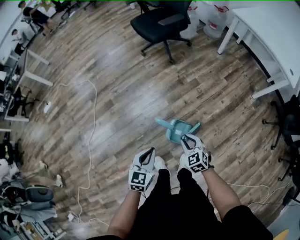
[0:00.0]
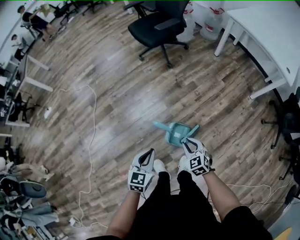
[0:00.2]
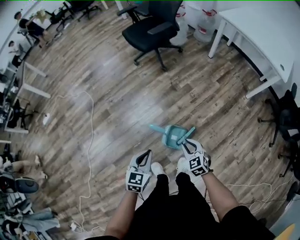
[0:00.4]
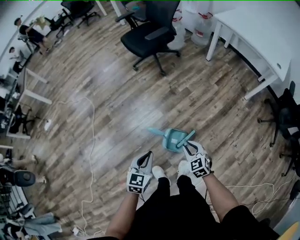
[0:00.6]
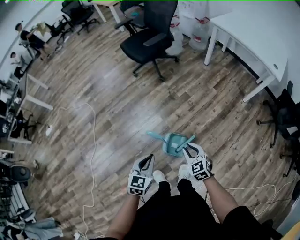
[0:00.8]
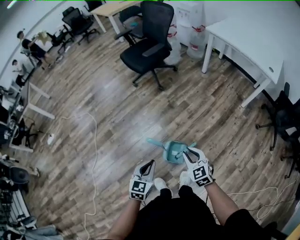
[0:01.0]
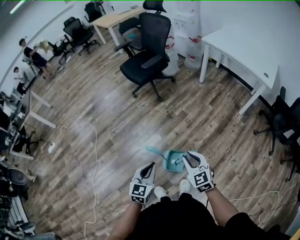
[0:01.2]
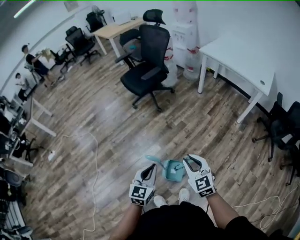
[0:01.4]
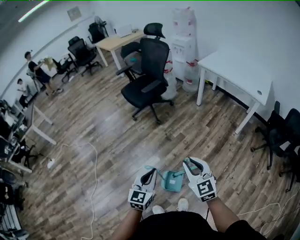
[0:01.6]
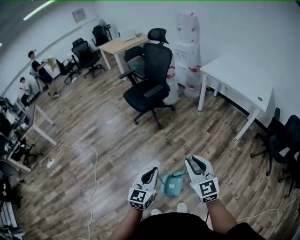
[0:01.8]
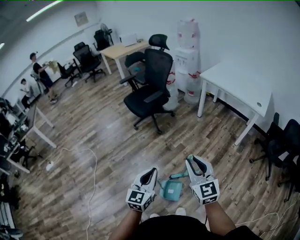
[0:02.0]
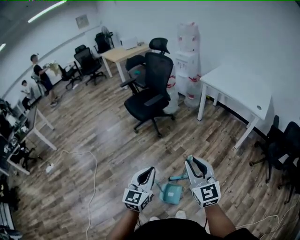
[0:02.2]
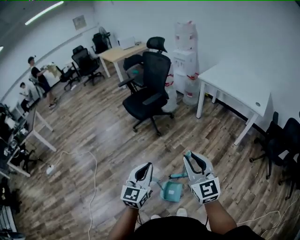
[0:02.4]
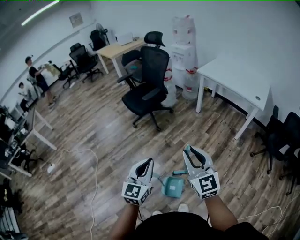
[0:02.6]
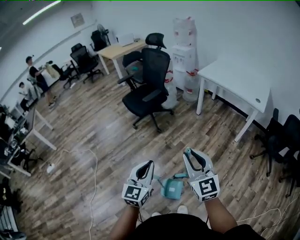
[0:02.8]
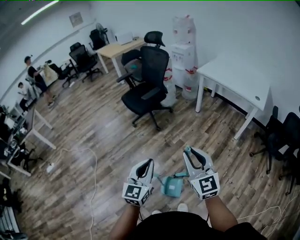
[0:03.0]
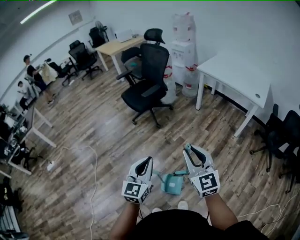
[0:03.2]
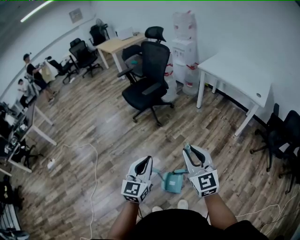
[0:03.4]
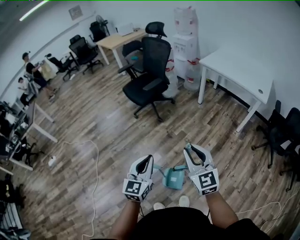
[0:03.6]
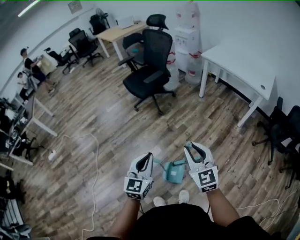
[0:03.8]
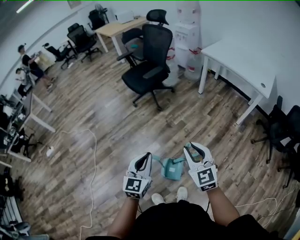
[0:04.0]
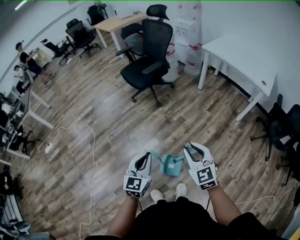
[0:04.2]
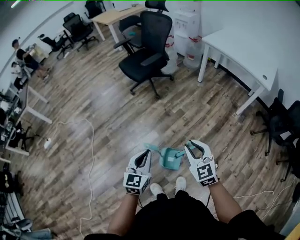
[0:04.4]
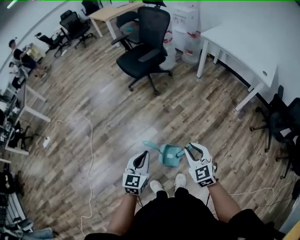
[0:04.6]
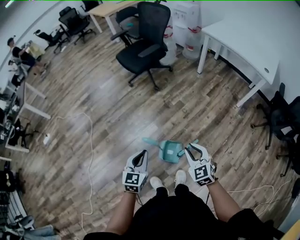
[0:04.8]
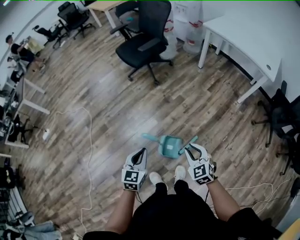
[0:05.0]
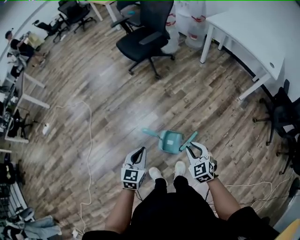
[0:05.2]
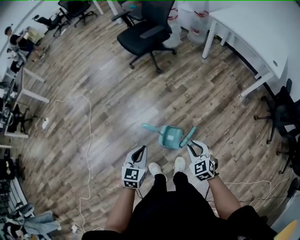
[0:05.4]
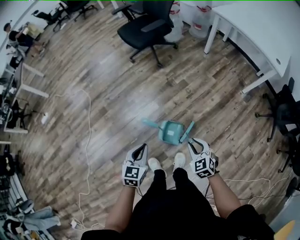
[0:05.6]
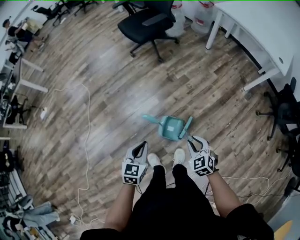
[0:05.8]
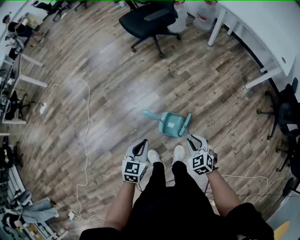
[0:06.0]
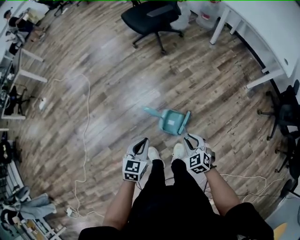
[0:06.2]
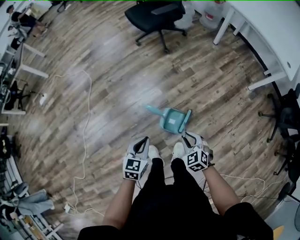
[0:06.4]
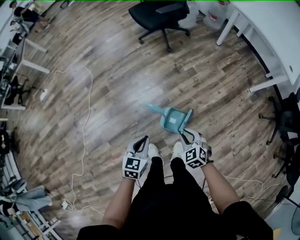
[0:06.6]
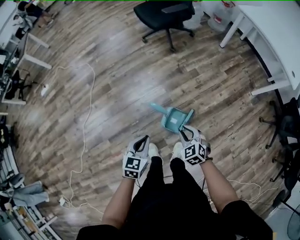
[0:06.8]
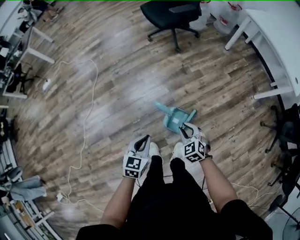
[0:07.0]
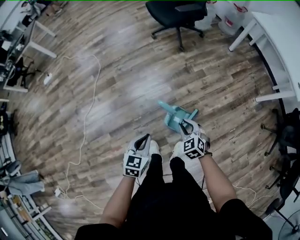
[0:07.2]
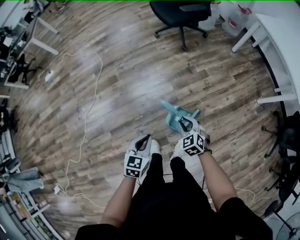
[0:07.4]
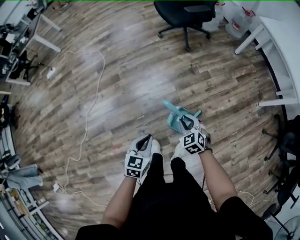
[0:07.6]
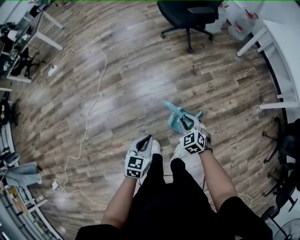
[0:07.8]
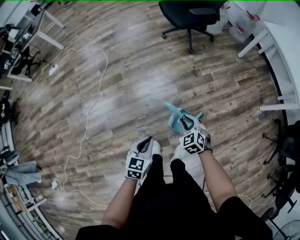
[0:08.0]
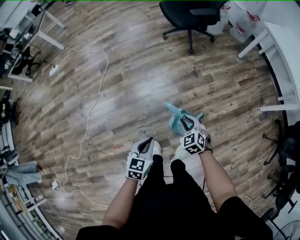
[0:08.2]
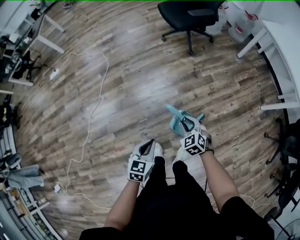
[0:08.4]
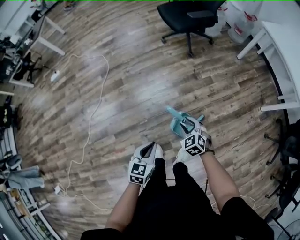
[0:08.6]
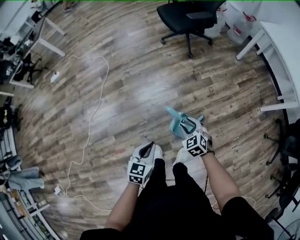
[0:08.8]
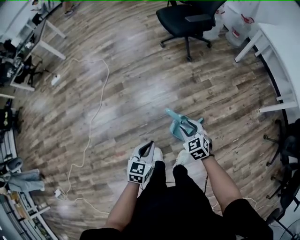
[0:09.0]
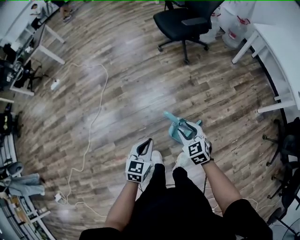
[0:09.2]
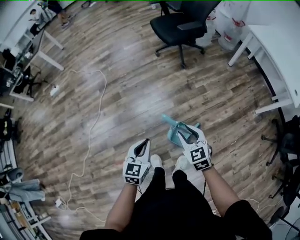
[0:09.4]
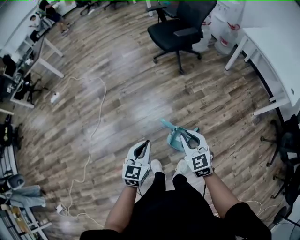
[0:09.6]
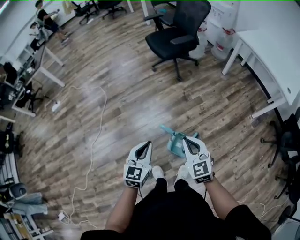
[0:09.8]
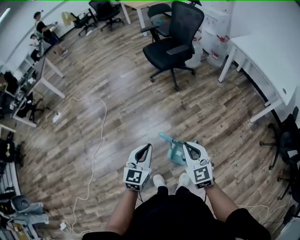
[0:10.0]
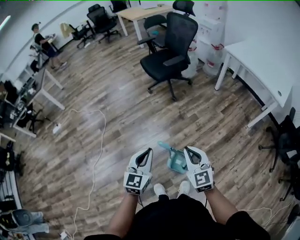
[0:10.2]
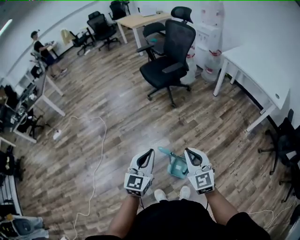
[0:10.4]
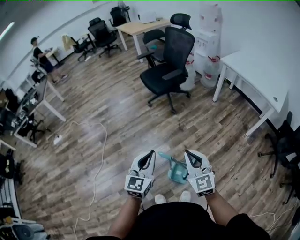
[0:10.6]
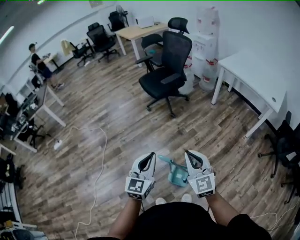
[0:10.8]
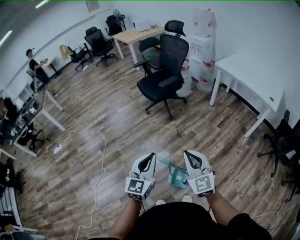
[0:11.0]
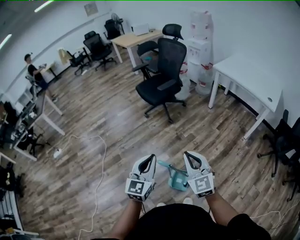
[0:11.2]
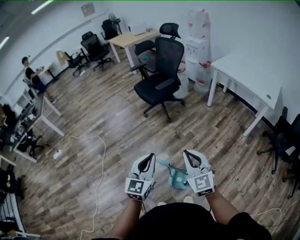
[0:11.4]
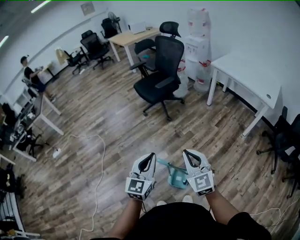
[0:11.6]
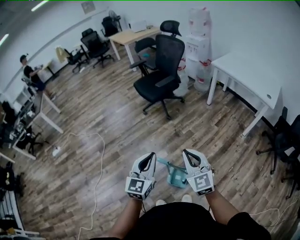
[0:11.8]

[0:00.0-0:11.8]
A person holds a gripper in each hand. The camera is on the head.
0:00.0 to 0:01.4: The right gripper heads upward, covering approximately 20 cm, and turns by some 30 degrees. The left gripper goes about 15 cm upward, to the right and forward.
0:01.4 to 0:03.0: Both grippers travel together upward, roughly 15 cm.
0:03.0 to 0:04.4: The grippers both shift downward by some 15 cm. The right gripper changes its angle by about 20 degrees.
0:04.4 to 0:06.0: The right gripper travels downward by approximately 20 cm, and rotates some 20 degrees. The left gripper moves downward and backward, some 15 cm.
0:06.0 to 0:07.4: The right gripper is displaced to the left and forward by approximately 15 cm. Meanwhile the left gripper changes place by some 5 cm.
0:07.4 to 0:08.8: There are only small adjustments of the grippers.
0:08.8 to 0:10.4: The left gripper moves upward and forward, some 20 cm, and swivels roughly 30 degrees. The right gripper goes roughly 25 cm upward, points its fingers some 30 degrees further upward, and closes.
0:10.4 to 0:11.8: The grippers make only small movements.

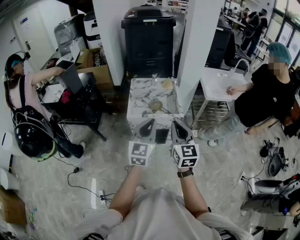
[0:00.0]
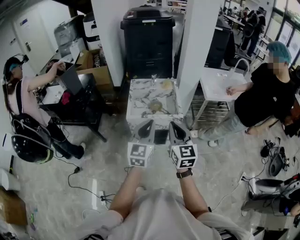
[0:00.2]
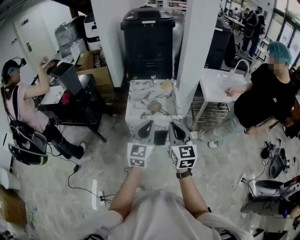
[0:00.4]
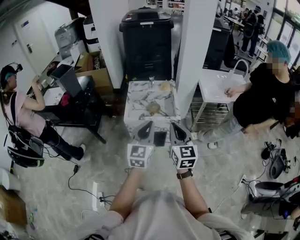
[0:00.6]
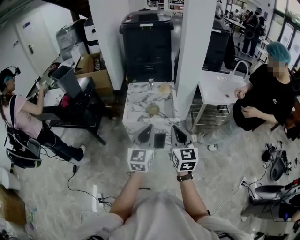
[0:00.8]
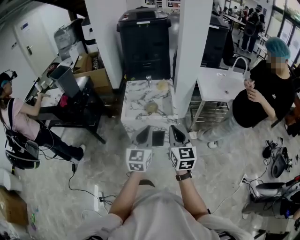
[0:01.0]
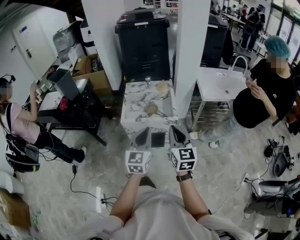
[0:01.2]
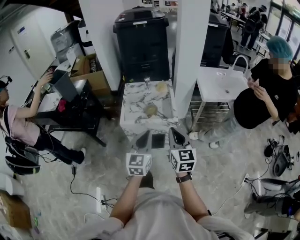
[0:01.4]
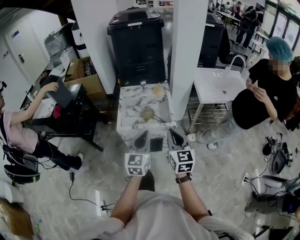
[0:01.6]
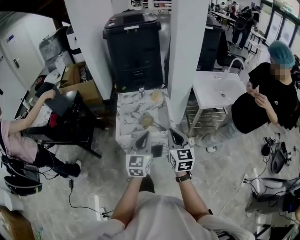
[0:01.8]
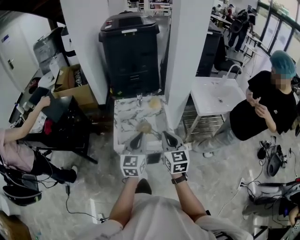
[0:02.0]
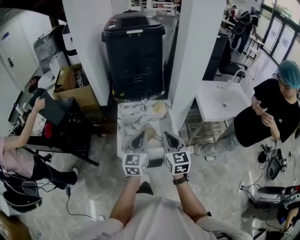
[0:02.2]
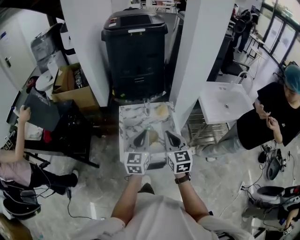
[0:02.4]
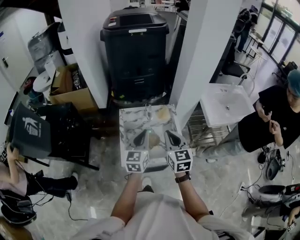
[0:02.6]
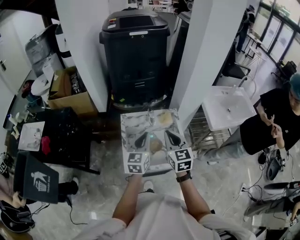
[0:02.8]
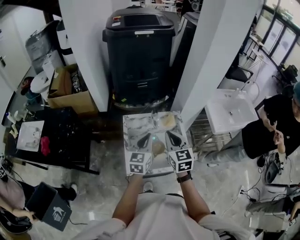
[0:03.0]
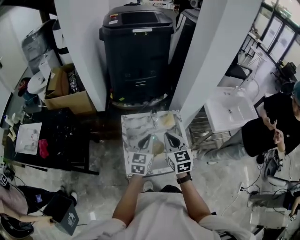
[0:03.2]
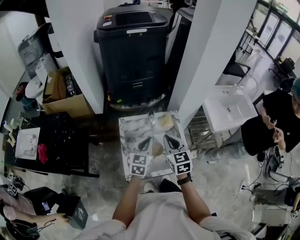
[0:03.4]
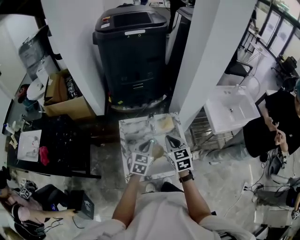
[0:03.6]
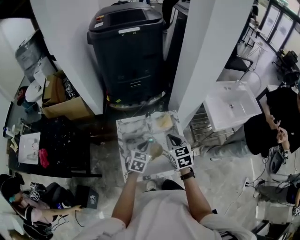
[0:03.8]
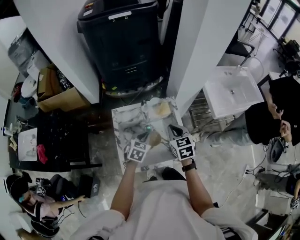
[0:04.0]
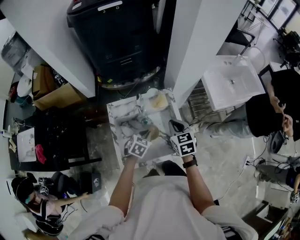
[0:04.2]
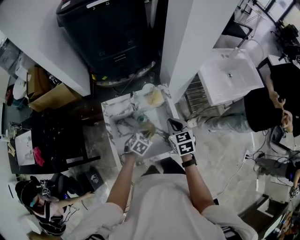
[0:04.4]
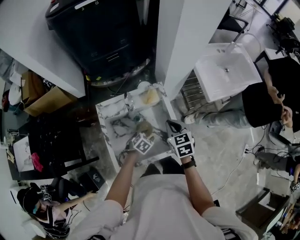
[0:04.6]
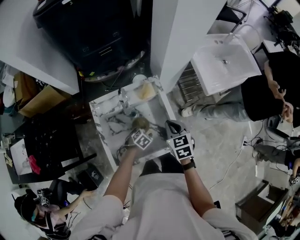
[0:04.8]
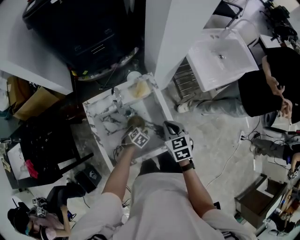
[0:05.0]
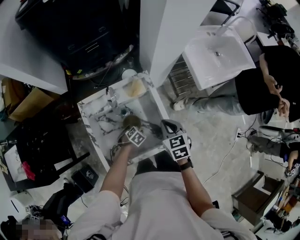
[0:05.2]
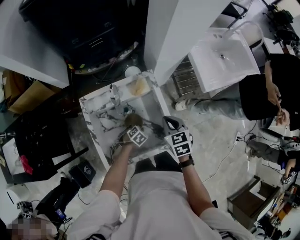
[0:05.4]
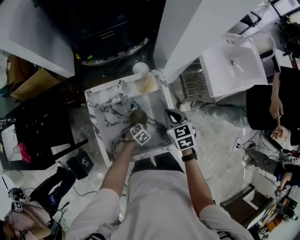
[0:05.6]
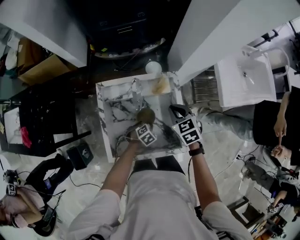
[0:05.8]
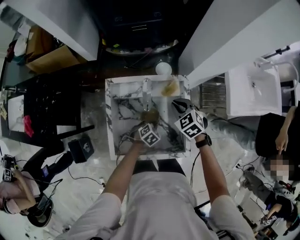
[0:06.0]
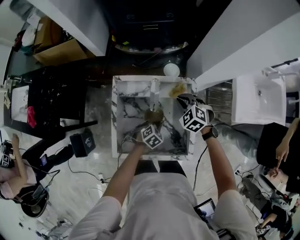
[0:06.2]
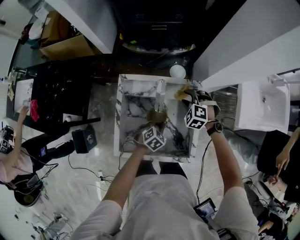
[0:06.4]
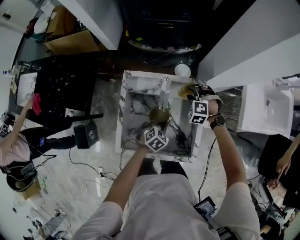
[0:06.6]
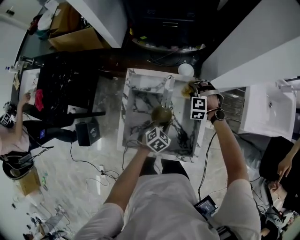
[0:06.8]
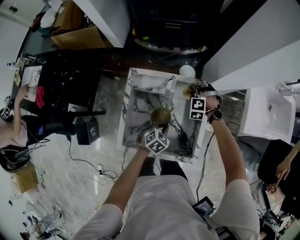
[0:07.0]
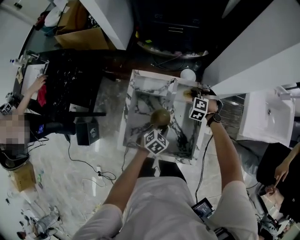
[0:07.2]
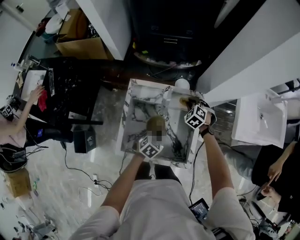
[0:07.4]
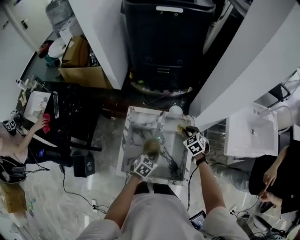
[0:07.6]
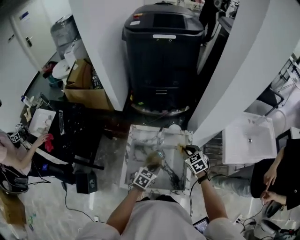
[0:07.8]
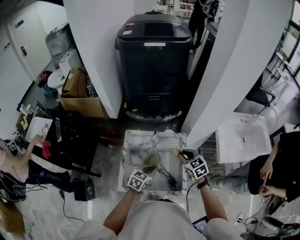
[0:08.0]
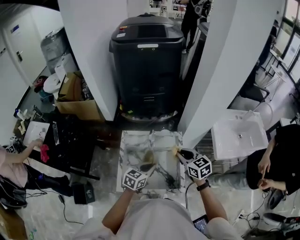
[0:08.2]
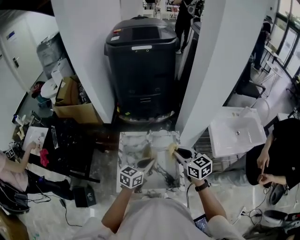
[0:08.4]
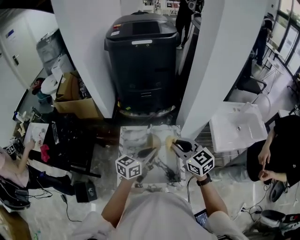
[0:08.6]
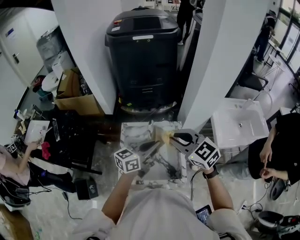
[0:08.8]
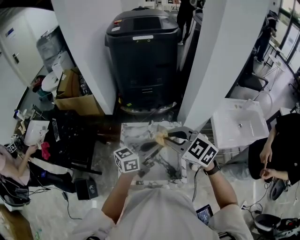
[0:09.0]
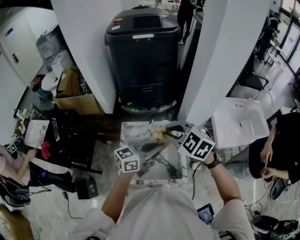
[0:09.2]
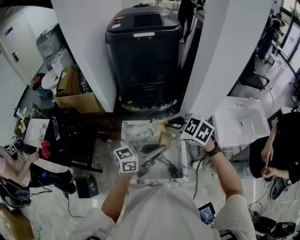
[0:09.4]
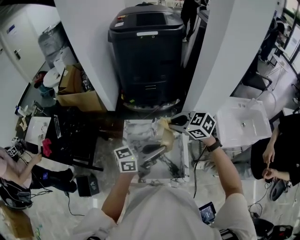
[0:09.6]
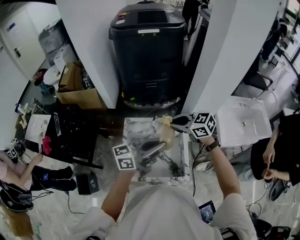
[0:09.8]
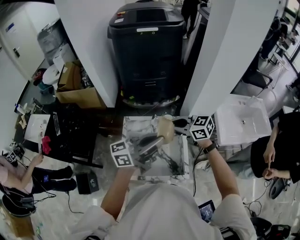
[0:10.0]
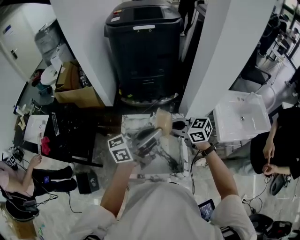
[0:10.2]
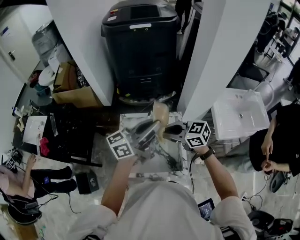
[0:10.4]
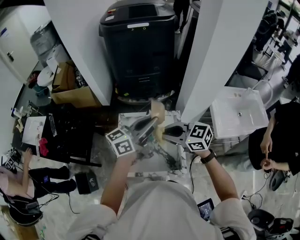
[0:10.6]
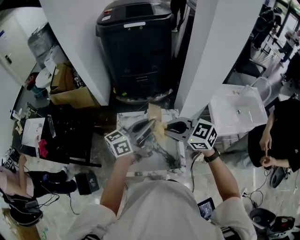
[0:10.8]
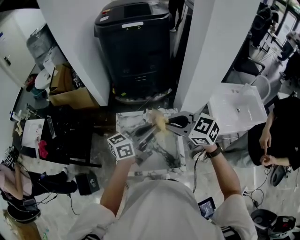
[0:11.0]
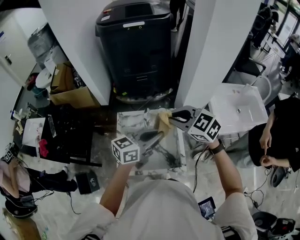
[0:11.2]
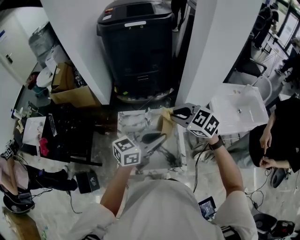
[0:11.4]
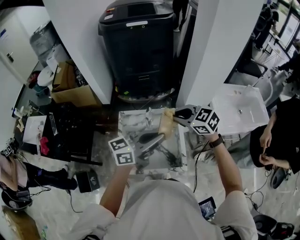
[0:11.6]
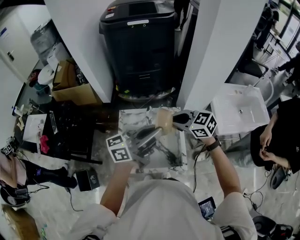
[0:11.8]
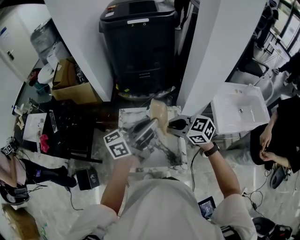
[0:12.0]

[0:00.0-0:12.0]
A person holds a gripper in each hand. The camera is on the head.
0:00.0 to 0:01.6: The left gripper heads forward and downward, covering roughly 10 cm. The right gripper travels forward and to the right by approximately 10 cm.
0:01.6 to 0:03.0: The left gripper heads forward, covering about 30 cm. Meanwhile the right gripper heads forward and to the left, covering approximately 35 cm.
0:03.0 to 0:04.4: The left gripper travels downward by some 25 cm, and points its fingers about 40 degrees further downward, while the right gripper goes roughly 20 cm downward, to the right and forward, and rotates approximately 20 degrees.
0:04.4 to 0:06.0: The right gripper goes about 15 cm downward, forward and to the left, and changes its angle by roughly 40 degrees. The left gripper goes about 10 cm downward, and opens, then closes again.
0:06.0 to 0:07.6: The right gripper shifts approximately 5 cm forward, moves roughly 10 cm downward and comes back, and opens and closes again; the left gripper is displaced upward by approximately 15 cm, and swivels about 30 degrees.
0:07.6 to 0:09.0: The right gripper goes approximately 35 cm upward and backward, and rotates approximately 30 degrees. Meanwhile the left gripper moves upward, roughly 30 cm, and angles its fingers upward, by roughly 50 degrees.
0:09.0 to 0:10.4: The right gripper heads downward, covering about 10 cm, and swivels about 30 degrees. Meanwhile the left gripper travels upward by about 5 cm.
0:10.4 to 0:12.0: The left gripper goes downward and returns, approximately 5 cm each way.
